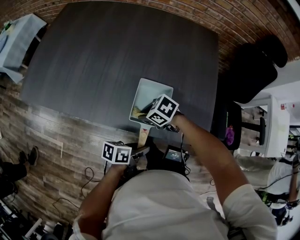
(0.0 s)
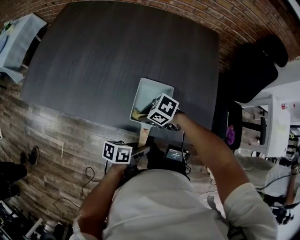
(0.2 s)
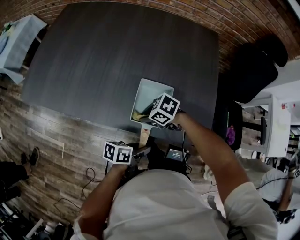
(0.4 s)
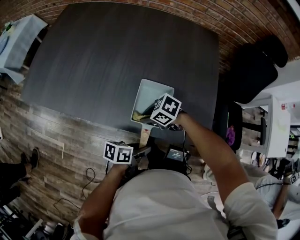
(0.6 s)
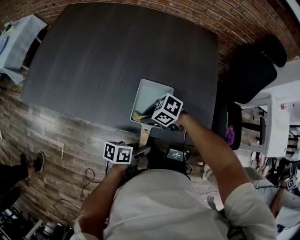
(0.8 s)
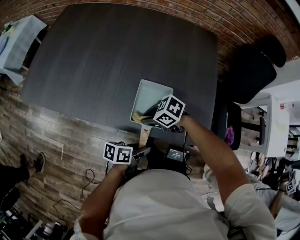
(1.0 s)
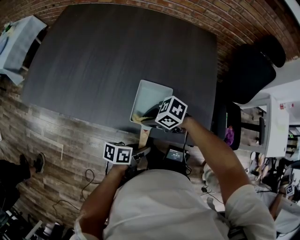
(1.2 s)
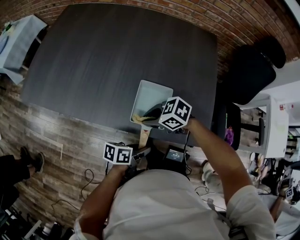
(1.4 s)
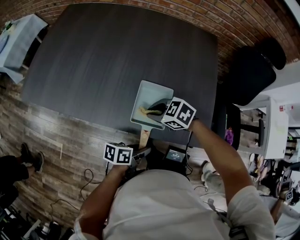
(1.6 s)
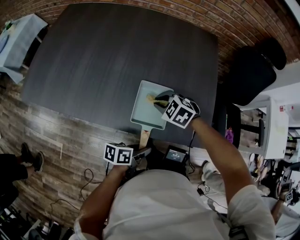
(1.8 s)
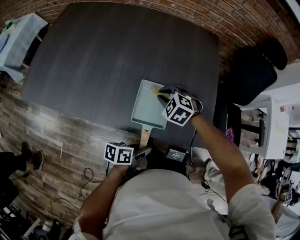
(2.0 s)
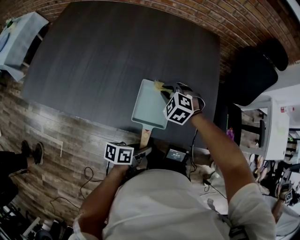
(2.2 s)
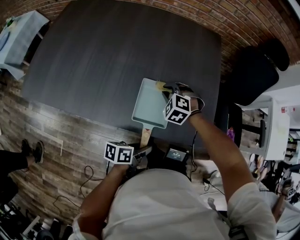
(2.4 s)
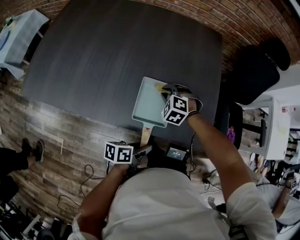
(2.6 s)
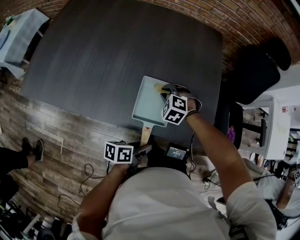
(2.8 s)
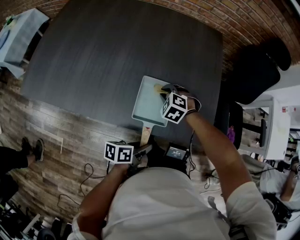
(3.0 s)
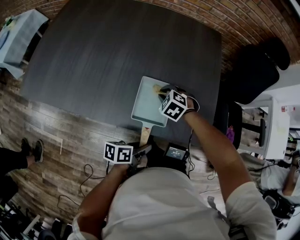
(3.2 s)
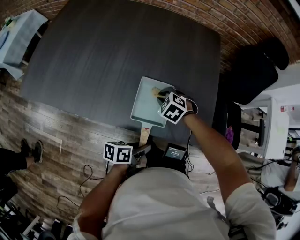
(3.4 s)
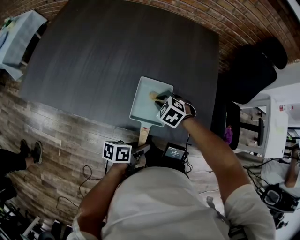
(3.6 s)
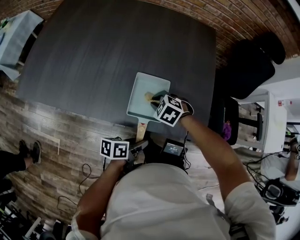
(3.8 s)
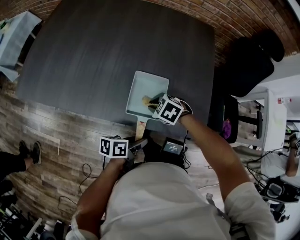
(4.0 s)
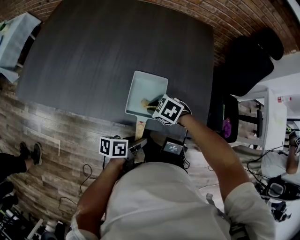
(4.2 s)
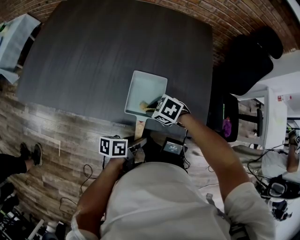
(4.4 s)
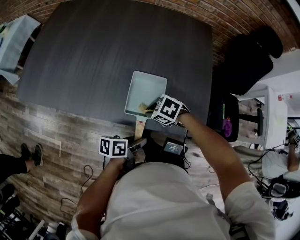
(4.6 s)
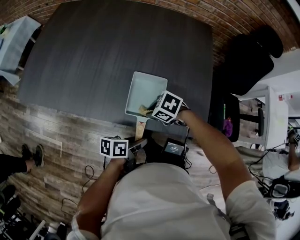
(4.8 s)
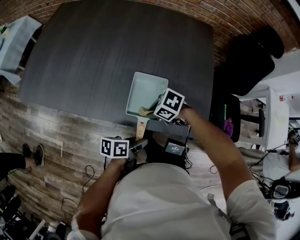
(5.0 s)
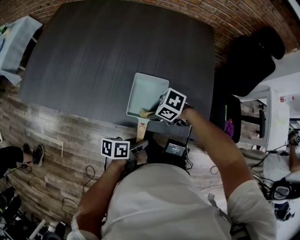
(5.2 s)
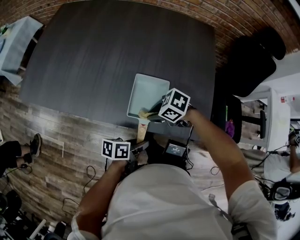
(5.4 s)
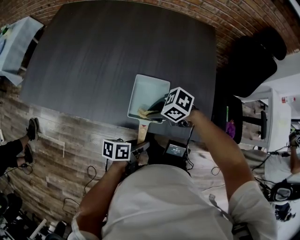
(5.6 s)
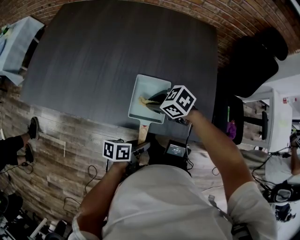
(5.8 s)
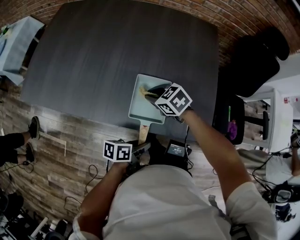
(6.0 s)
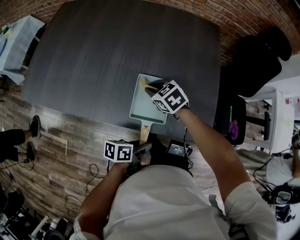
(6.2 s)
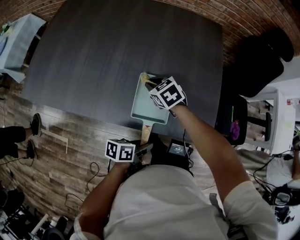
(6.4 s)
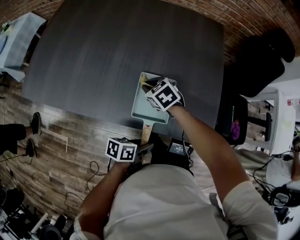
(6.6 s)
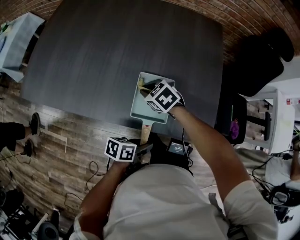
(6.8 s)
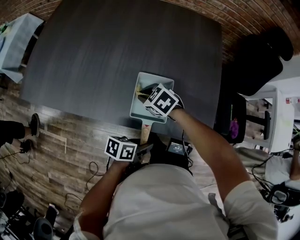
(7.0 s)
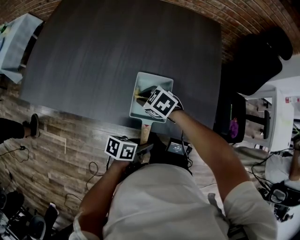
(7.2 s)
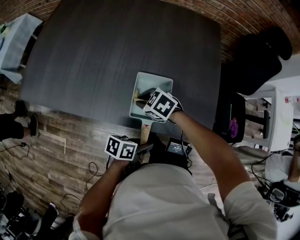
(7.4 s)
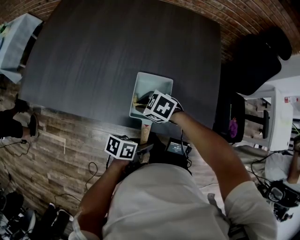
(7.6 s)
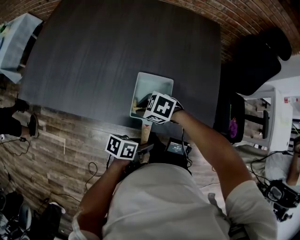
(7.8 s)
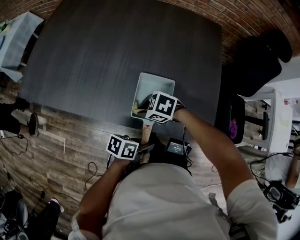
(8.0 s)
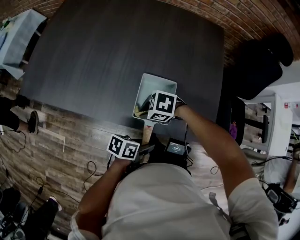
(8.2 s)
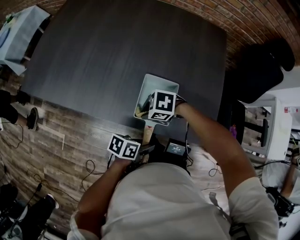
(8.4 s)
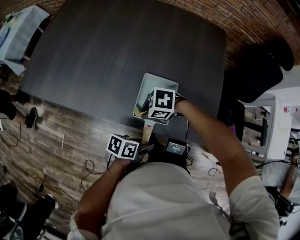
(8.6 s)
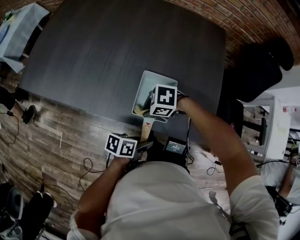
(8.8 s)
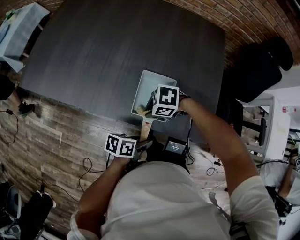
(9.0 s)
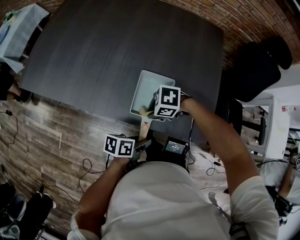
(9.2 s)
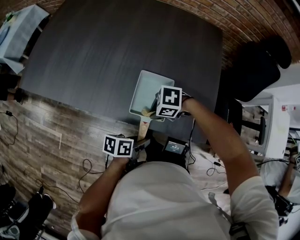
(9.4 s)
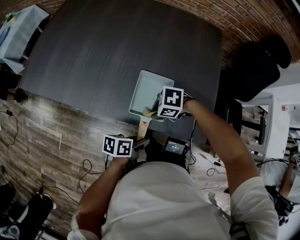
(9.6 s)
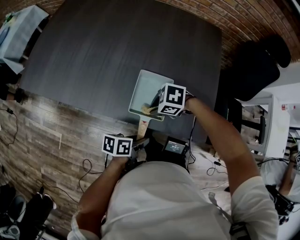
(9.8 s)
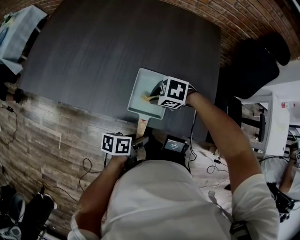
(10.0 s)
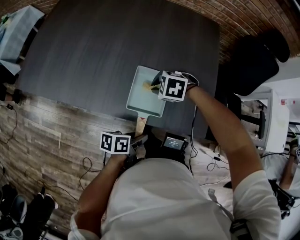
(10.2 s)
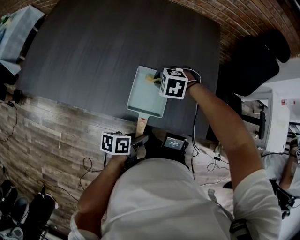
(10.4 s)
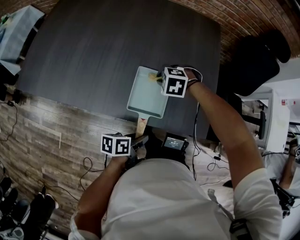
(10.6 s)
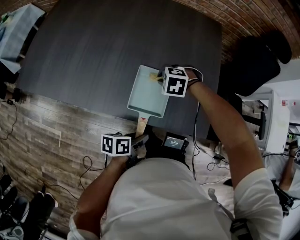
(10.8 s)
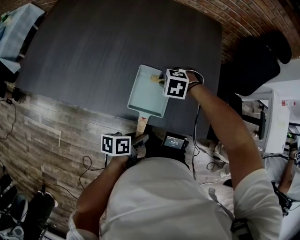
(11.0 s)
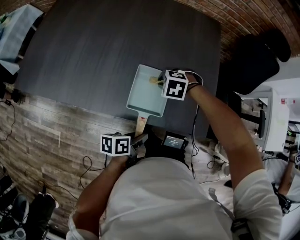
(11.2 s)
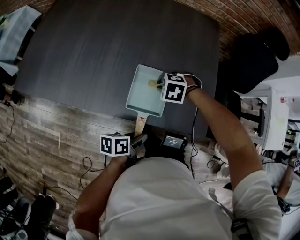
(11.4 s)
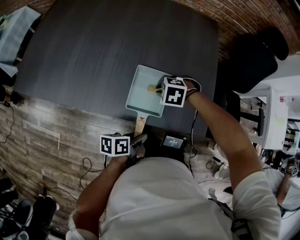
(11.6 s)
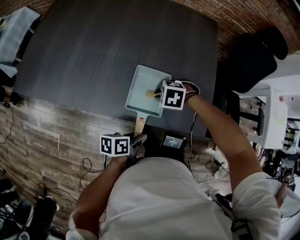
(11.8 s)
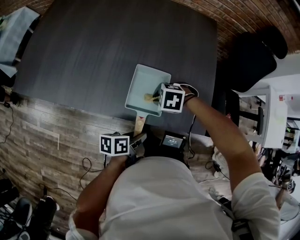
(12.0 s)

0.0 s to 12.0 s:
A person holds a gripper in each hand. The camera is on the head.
0.0 to 1.6 s: The right gripper shifts some 5 cm upward.
1.6 to 3.0 s: The right gripper ends up approximately 10 cm from where it was, and swivels some 40 degrees.
3.0 to 4.4 s: The right gripper moves some 10 cm, and swivels approximately 40 degrees.
4.4 to 6.0 s: The right gripper changes place by roughly 10 cm, and rotates roughly 20 degrees.
6.0 to 7.6 s: The right gripper shifts by roughly 10 cm.
7.6 to 9.0 s: The right gripper moves roughly 5 cm, and turns by approximately 30 degrees.
9.0 to 10.4 s: The right gripper moves about 15 cm, and changes its angle by approximately 40 degrees.
10.4 to 12.0 s: The right gripper changes place by roughly 10 cm.

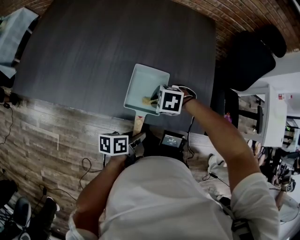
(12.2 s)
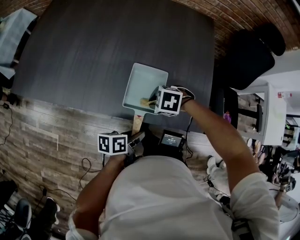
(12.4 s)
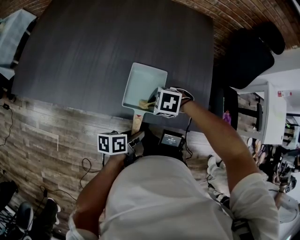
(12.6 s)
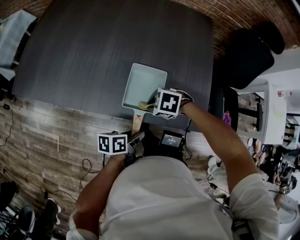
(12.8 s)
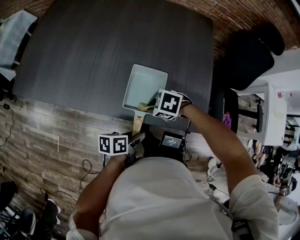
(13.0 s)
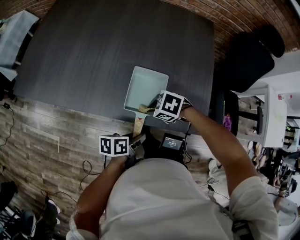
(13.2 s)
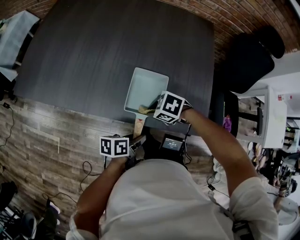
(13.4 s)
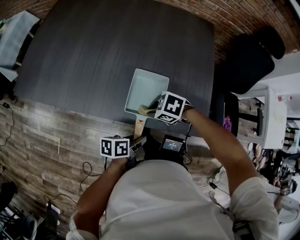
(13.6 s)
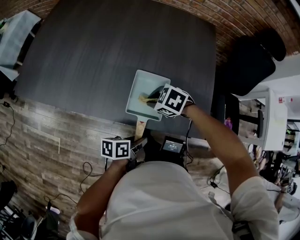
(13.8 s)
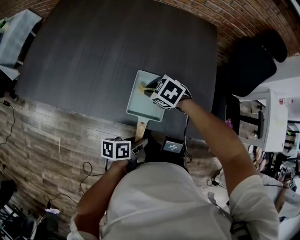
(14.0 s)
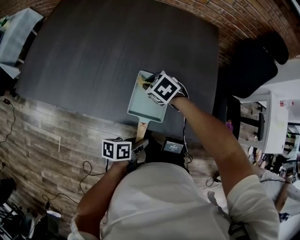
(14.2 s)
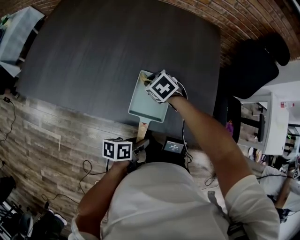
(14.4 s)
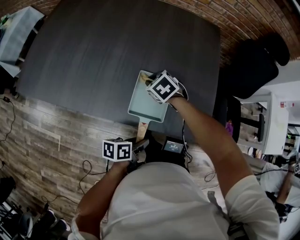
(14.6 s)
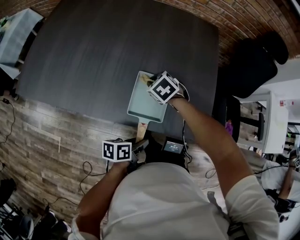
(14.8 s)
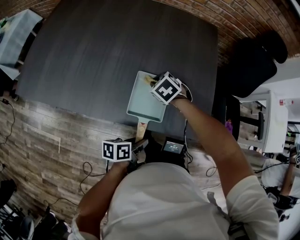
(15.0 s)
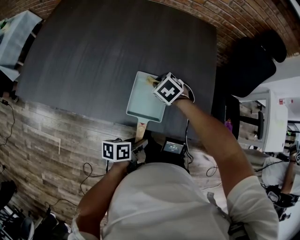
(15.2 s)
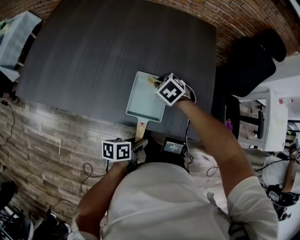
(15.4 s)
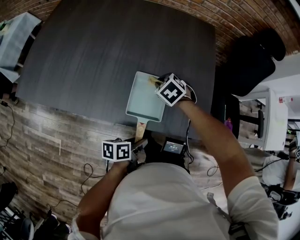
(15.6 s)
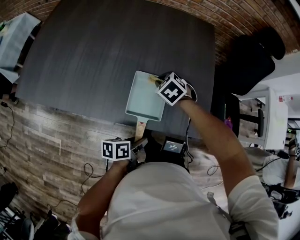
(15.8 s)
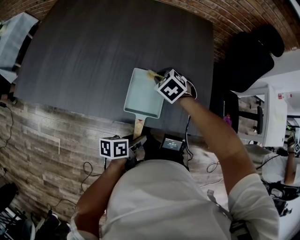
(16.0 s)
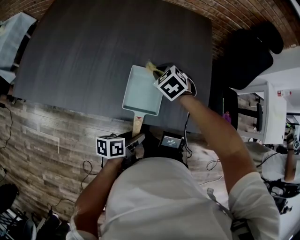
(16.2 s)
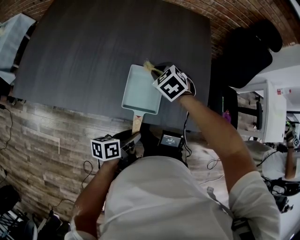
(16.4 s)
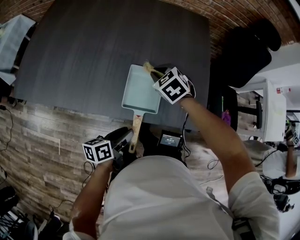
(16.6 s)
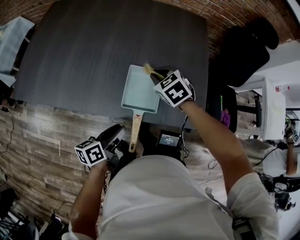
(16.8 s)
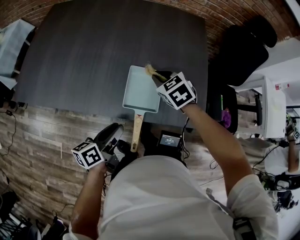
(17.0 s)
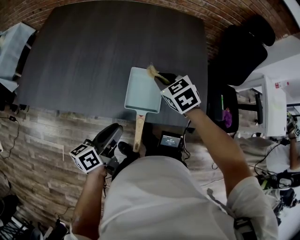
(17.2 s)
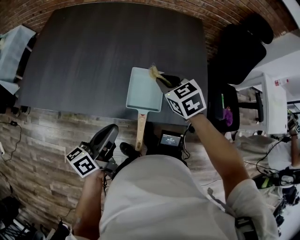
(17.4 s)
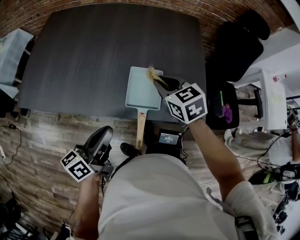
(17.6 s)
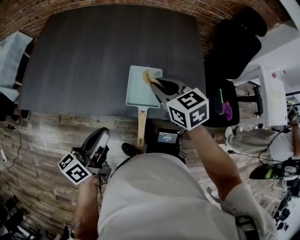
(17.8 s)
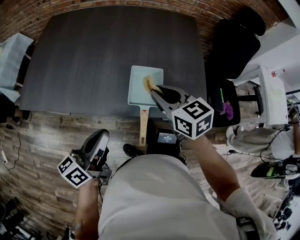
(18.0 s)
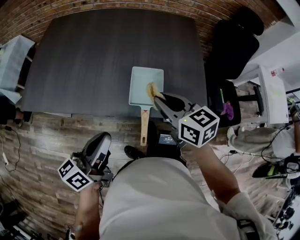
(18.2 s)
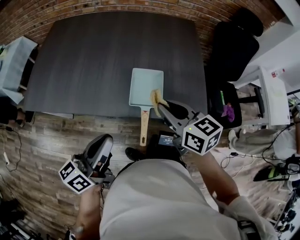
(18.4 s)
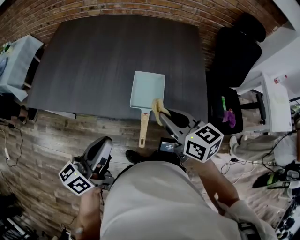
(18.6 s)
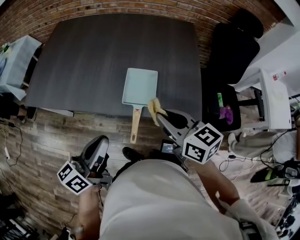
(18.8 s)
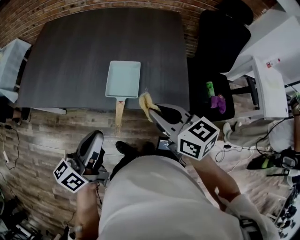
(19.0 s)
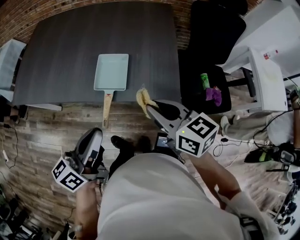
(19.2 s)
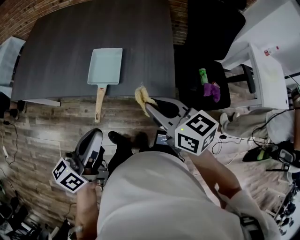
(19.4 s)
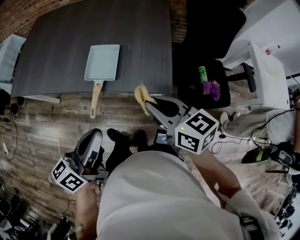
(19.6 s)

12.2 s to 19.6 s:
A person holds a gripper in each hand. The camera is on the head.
12.2 to 13.6 s: The grippers move only a little.
13.6 to 15.2 s: The right gripper moves about 15 cm, and turns by roughly 30 degrees.
15.2 to 16.6 s: The left gripper shifts approximately 5 cm to the left; the right gripper travels upward by some 5 cm.
16.6 to 18.2 s: The left gripper heads upward and to the left, covering roughly 20 cm, changes its angle by approximately 30 degrees, and closes up. Meanwhile the right gripper shifts roughly 20 cm backward and upward, and tips its fingers upward by approximately 30 degrees.
18.2 to 19.6 s: The grippers both shift to the right and backward by some 20 cm.

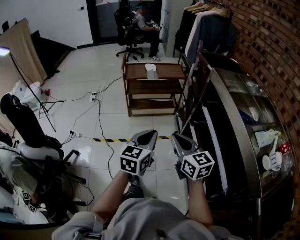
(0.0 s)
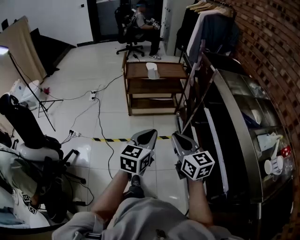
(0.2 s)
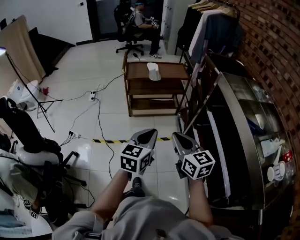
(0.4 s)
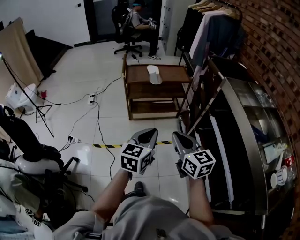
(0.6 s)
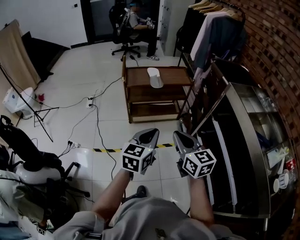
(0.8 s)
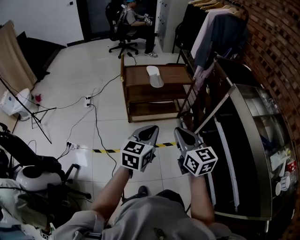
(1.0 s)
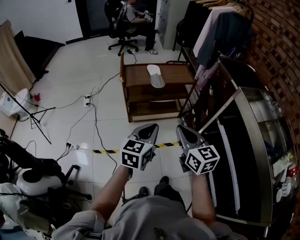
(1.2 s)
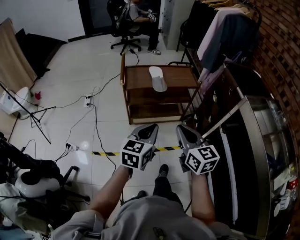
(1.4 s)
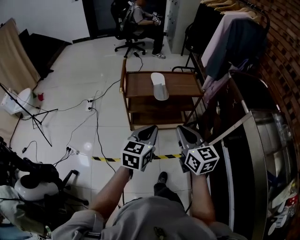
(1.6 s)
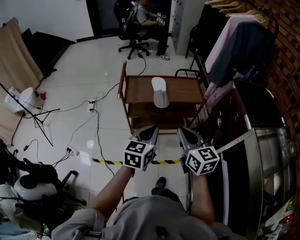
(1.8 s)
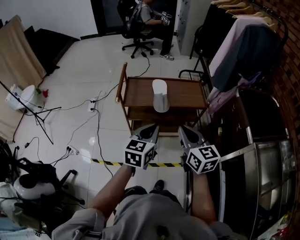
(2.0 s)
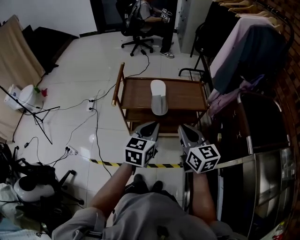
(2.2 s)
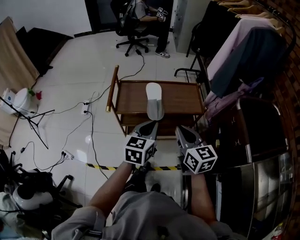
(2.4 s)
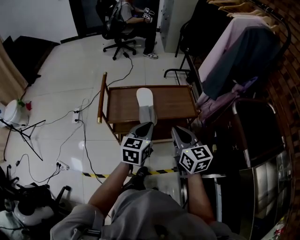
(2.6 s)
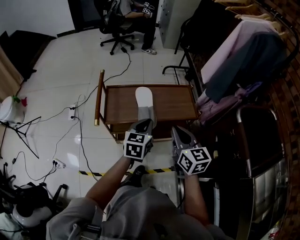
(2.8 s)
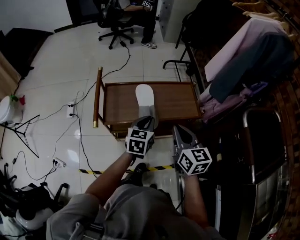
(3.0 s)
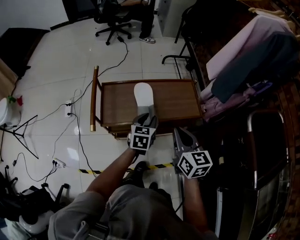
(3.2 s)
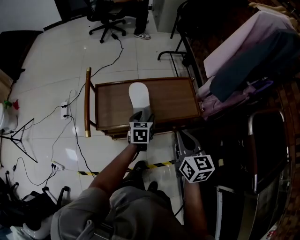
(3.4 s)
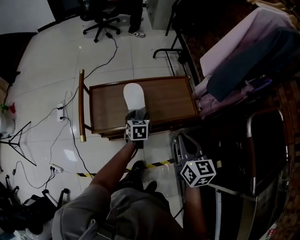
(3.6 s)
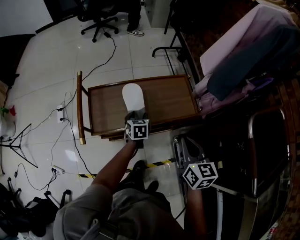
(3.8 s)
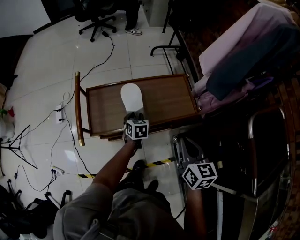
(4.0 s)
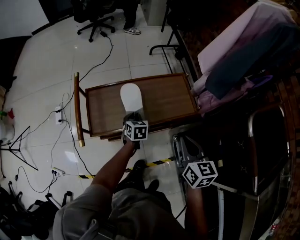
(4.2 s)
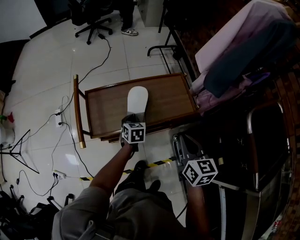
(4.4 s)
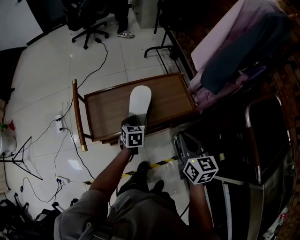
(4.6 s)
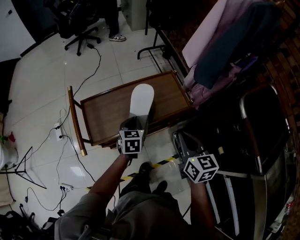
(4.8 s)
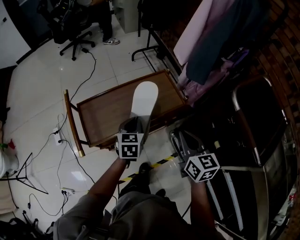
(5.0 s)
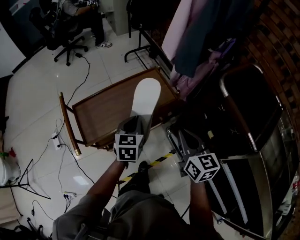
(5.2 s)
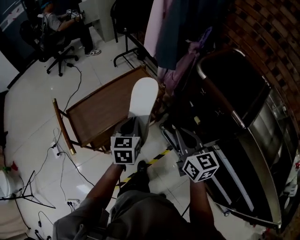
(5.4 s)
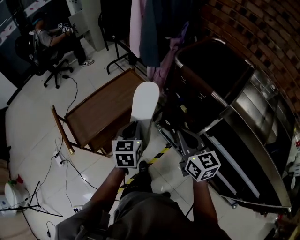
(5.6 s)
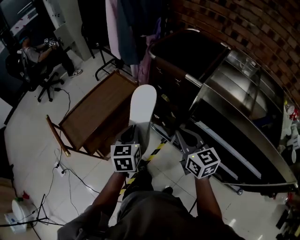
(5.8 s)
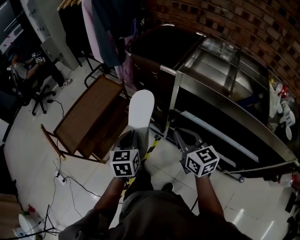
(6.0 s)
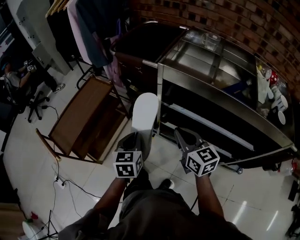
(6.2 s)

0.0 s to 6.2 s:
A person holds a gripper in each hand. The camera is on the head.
0.0 to 1.6 s: The grippers both shift forward by roughly 35 cm.
1.6 to 3.2 s: The right gripper moves forward, some 35 cm; the left gripper goes approximately 40 cm forward and downward, and opens its fingers.
3.2 to 4.6 s: The right gripper travels to the right by about 5 cm. The left gripper is displaced downward and forward by roughly 10 cm, and closes up.
4.6 to 6.2 s: The two grippers travel together, roughly 50 cm. The left gripper changes its angle by about 50 degrees. The right gripper swivels some 30 degrees.
